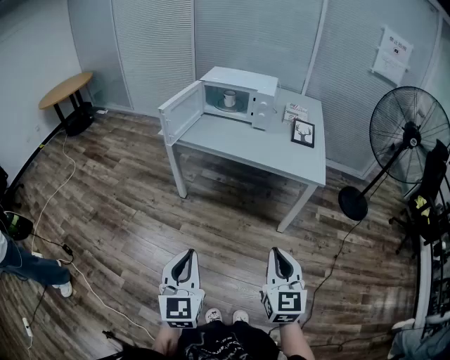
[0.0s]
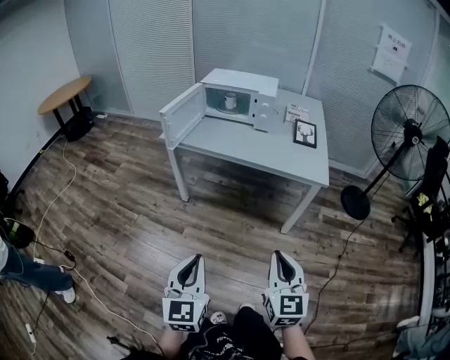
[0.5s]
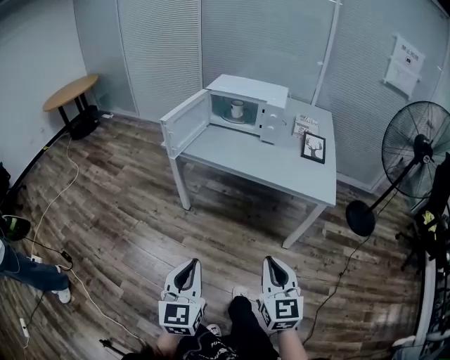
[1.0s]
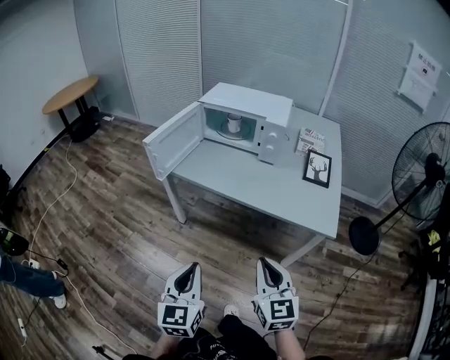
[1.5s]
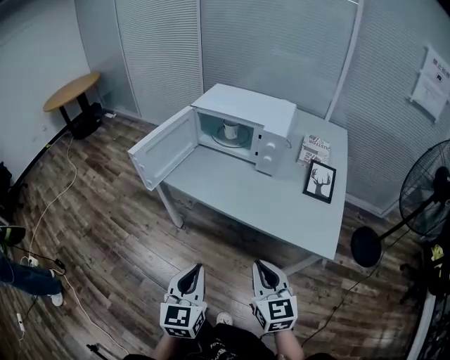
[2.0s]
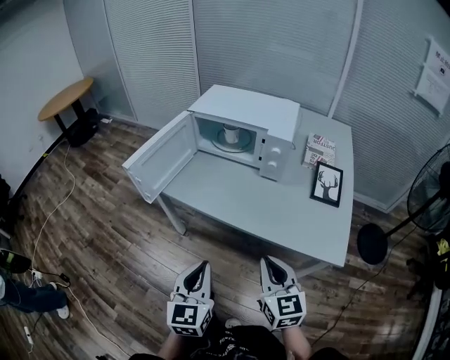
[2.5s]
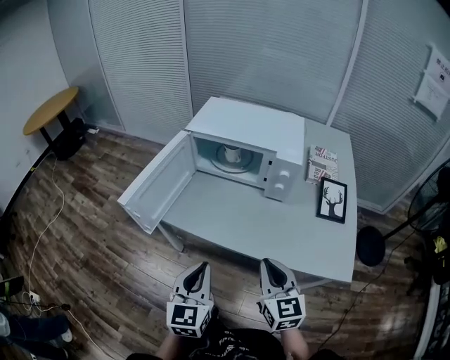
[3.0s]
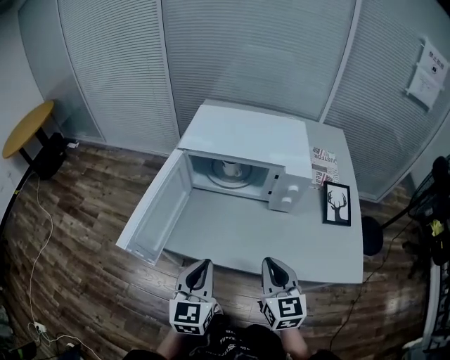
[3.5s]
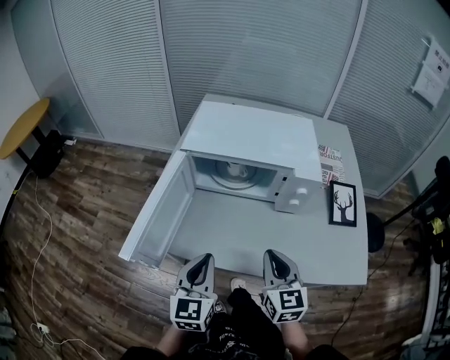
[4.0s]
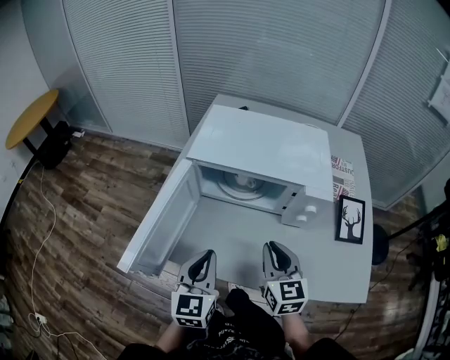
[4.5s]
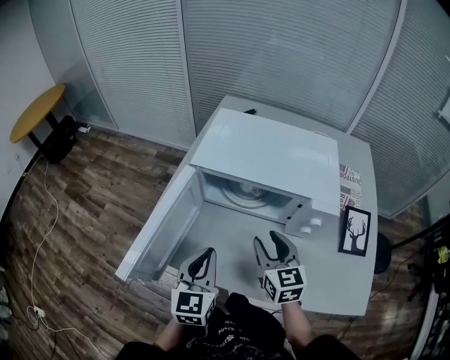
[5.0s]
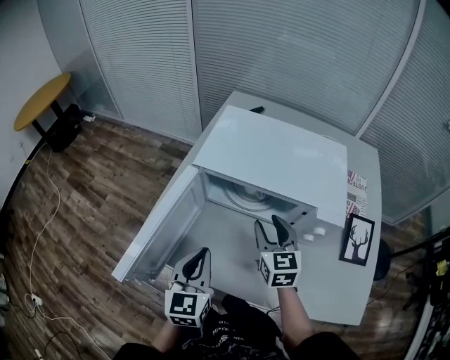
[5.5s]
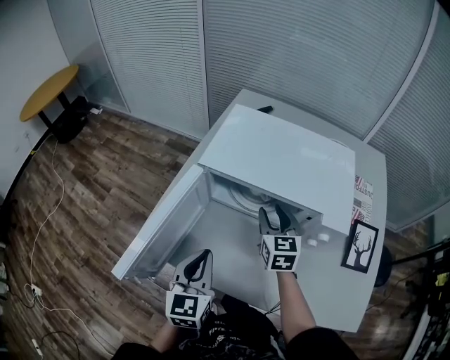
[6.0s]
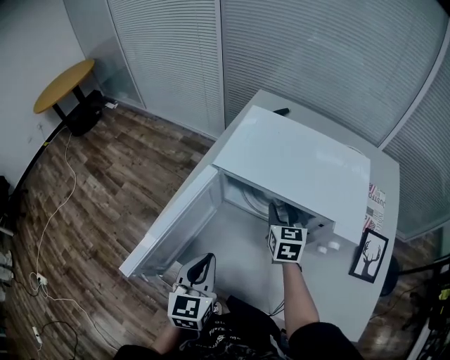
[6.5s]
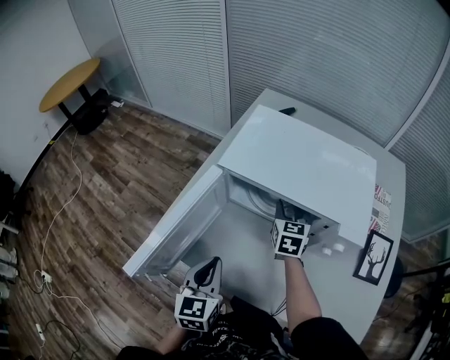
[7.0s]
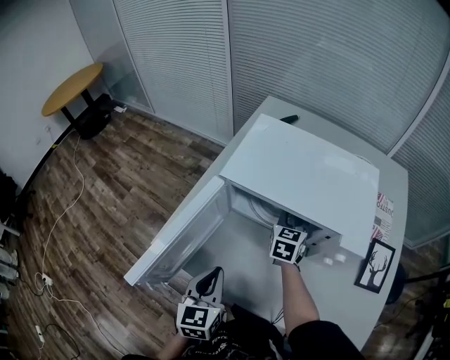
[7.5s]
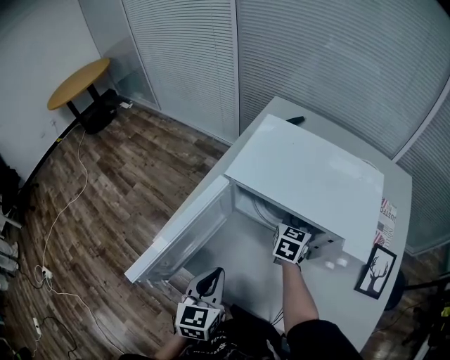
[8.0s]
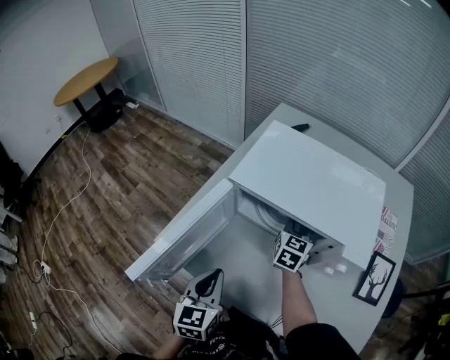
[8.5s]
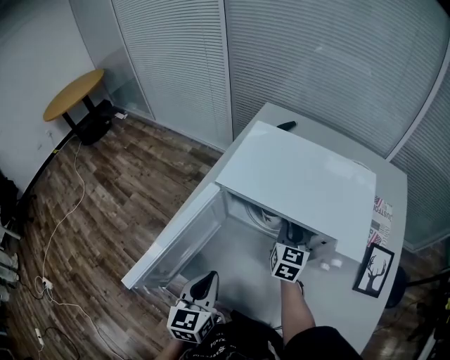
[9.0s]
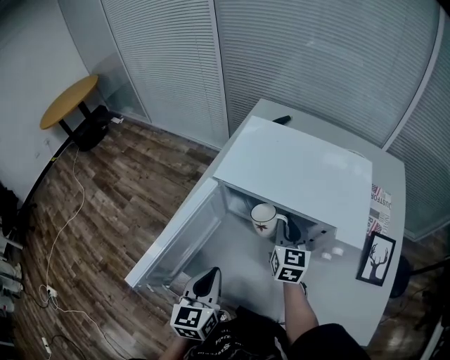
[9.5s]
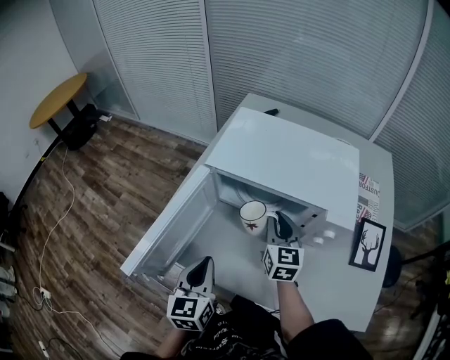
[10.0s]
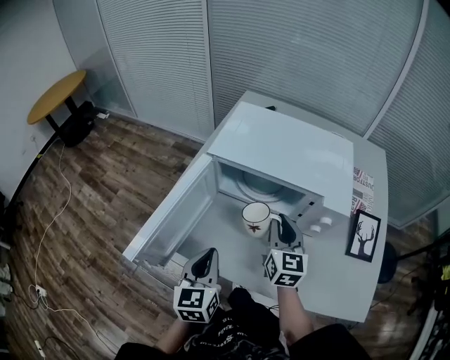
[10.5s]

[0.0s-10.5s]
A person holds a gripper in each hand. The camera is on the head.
0.0s to 2.0s: Both grippers move forward, approximately 30 cm.
2.0s to 4.0s: Both grippers move forward, approximately 30 cm.
4.0s to 6.5s: The left gripper moves forward, roughly 10 cm. The right gripper shifts about 30 cm forward, and opens up.
6.5s to 8.5s: The right gripper closes its fingers.
8.5s to 10.5s: The right gripper goes roughly 15 cm backward and upward.

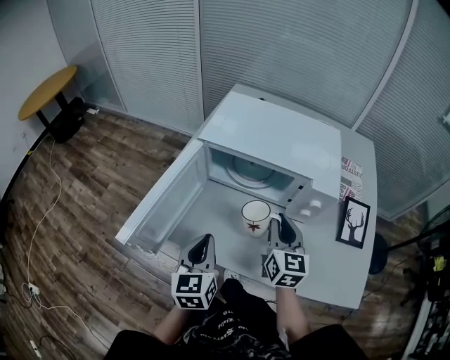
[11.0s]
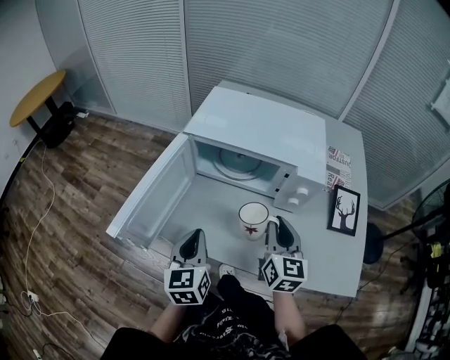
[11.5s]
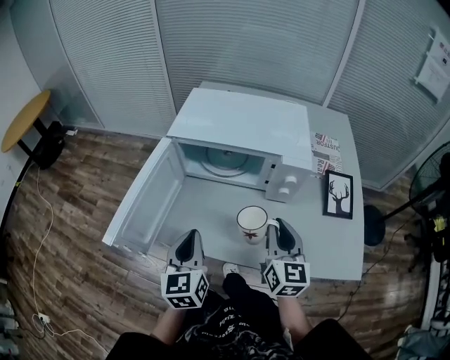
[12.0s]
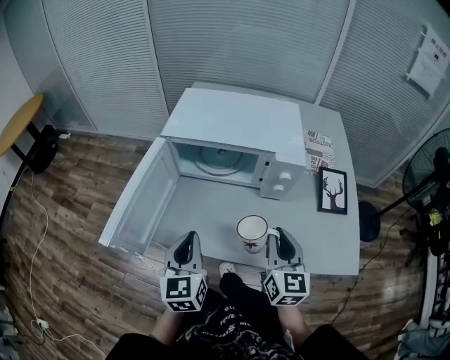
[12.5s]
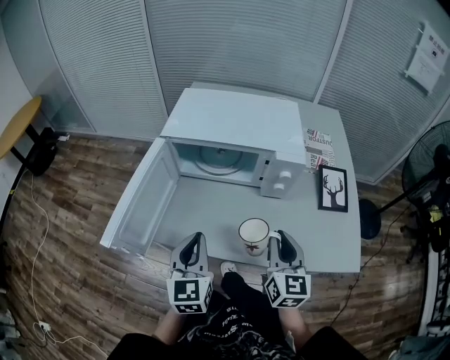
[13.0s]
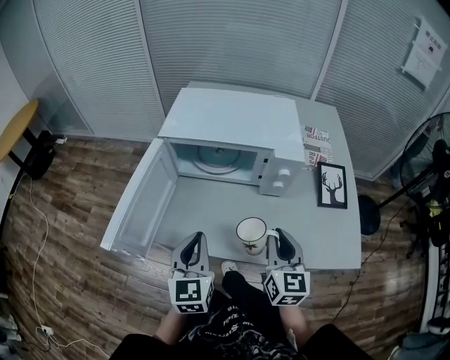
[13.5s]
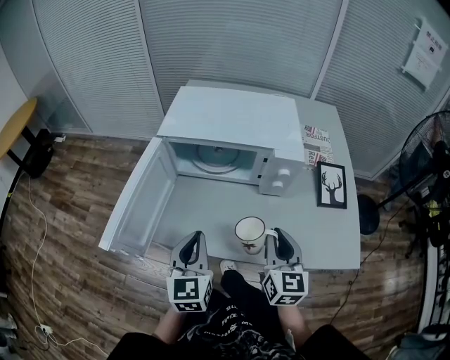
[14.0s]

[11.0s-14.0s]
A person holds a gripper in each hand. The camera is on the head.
11.0s to 12.5s: The right gripper heads backward and to the right, covering about 15 cm.
12.5s to 14.0s: The grippers make only small movements.

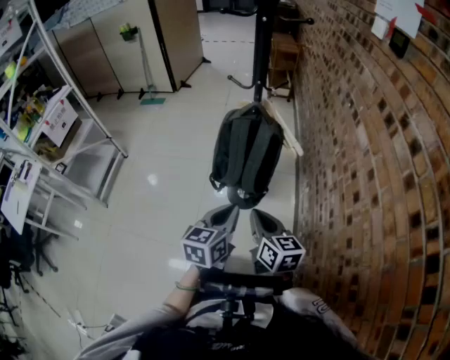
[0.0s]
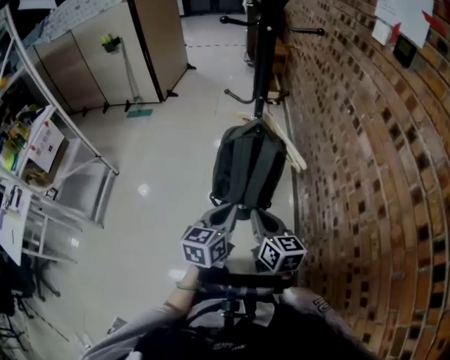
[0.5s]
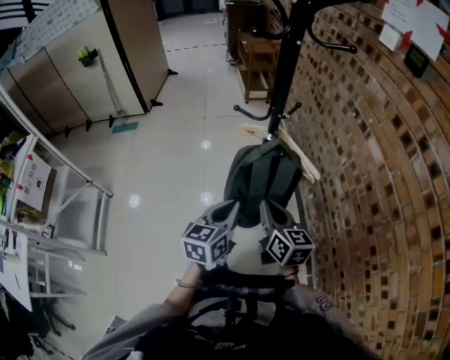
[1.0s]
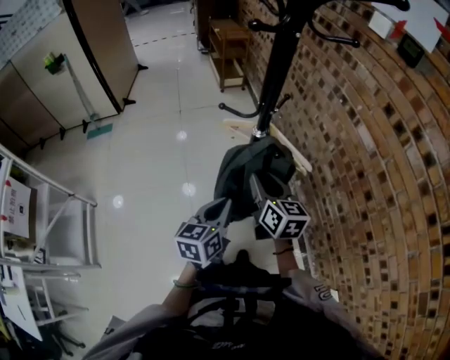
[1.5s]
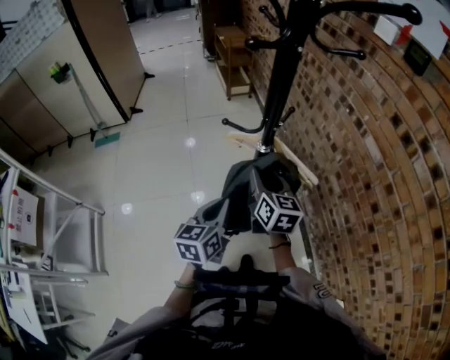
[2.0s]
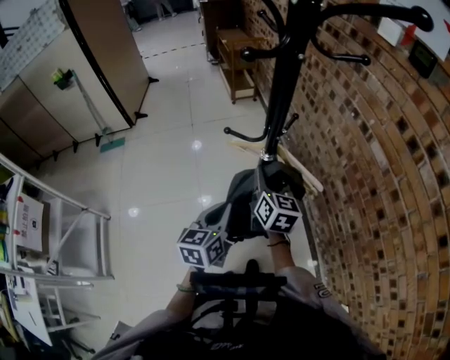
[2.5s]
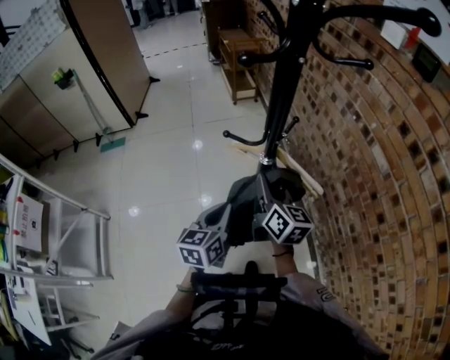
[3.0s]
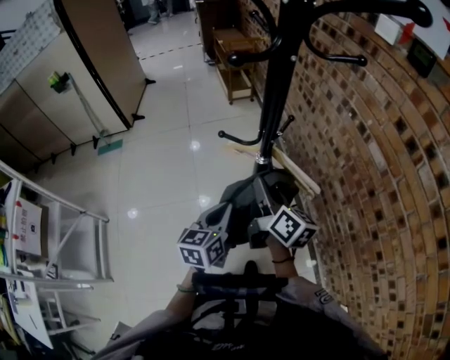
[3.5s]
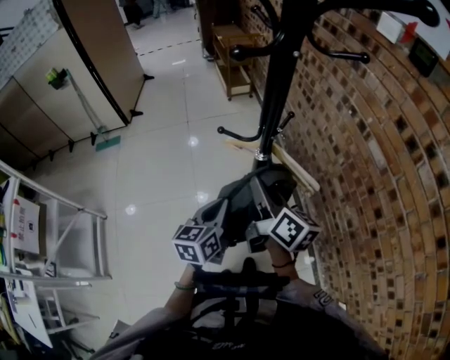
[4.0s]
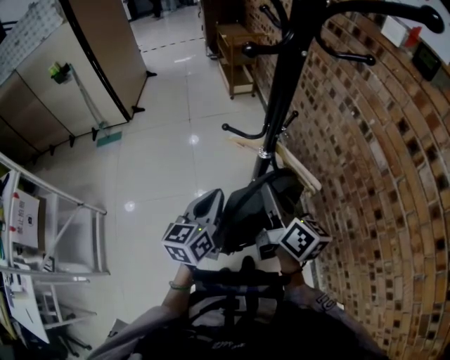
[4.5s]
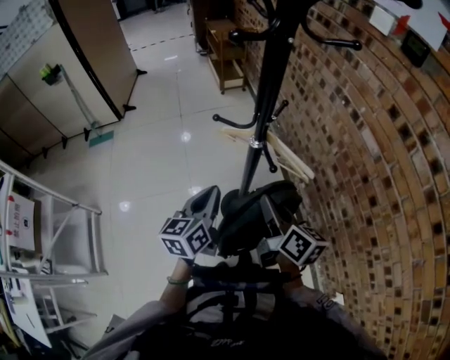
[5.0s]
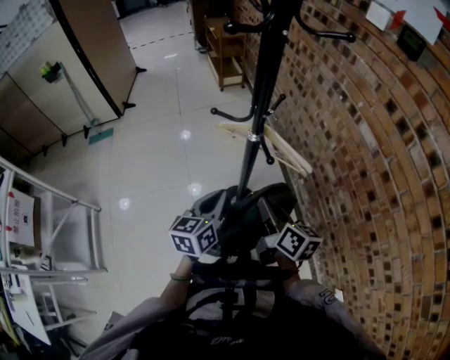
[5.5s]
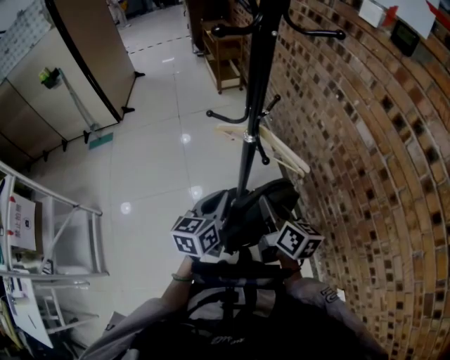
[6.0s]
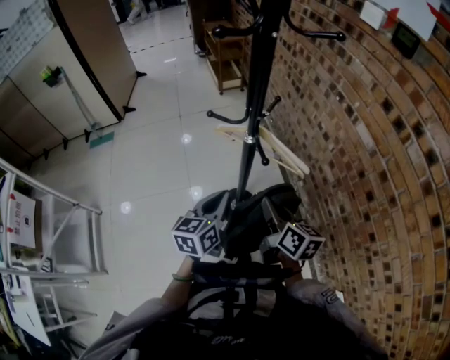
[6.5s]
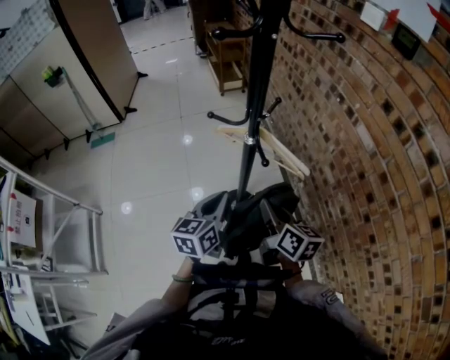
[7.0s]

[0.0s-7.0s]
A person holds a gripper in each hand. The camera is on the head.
0.0s to 2.0s: The left gripper travels forward and to the left by approximately 25 cm, while the right gripper shifts roughly 30 cm forward, swivels approximately 30 degrees, and opens its fingers.
2.0s to 3.5s: The right gripper turns by about 30 degrees, and closes its fingers.
3.5s to 5.0s: The right gripper goes some 10 cm backward.
5.0s to 7.0s: The left gripper moves approximately 5 cm, while the right gripper moves downward, about 5 cm.

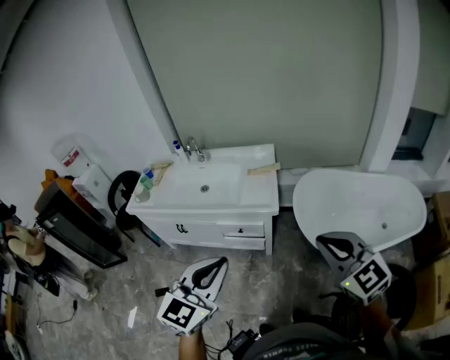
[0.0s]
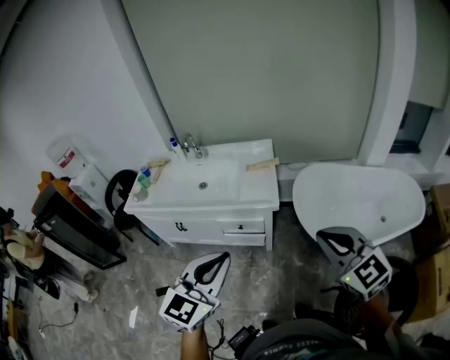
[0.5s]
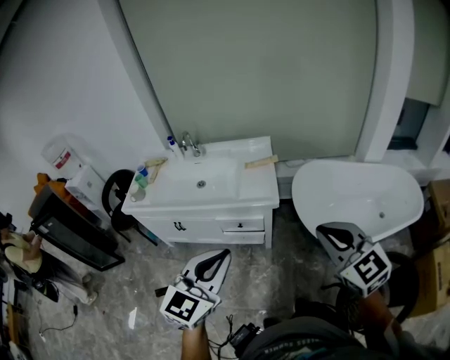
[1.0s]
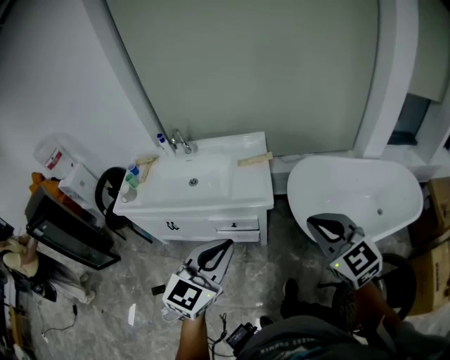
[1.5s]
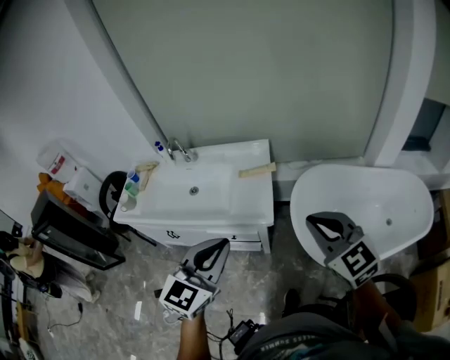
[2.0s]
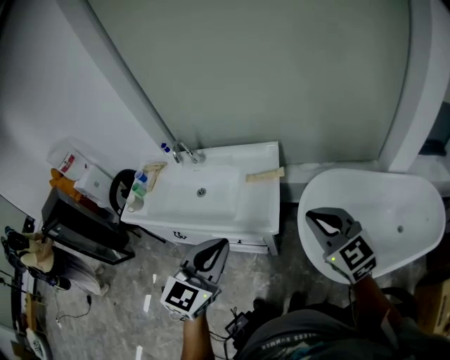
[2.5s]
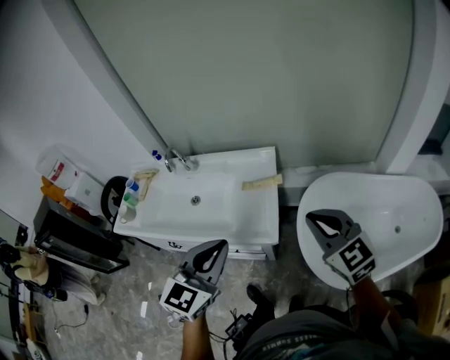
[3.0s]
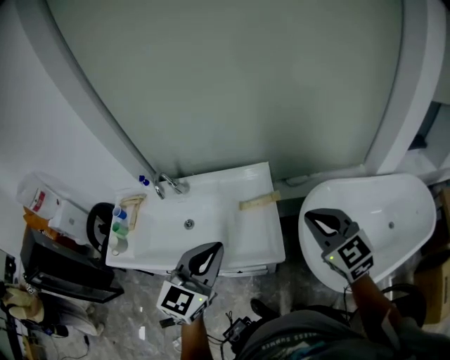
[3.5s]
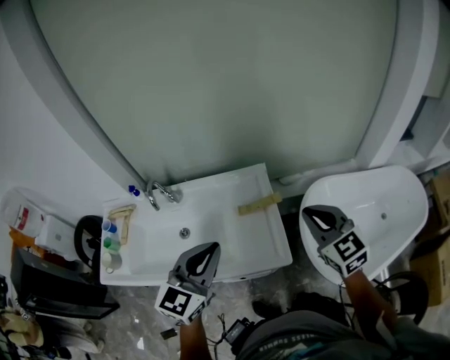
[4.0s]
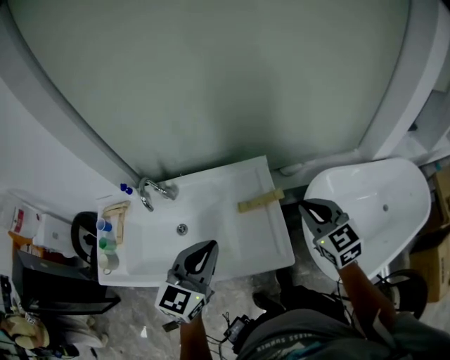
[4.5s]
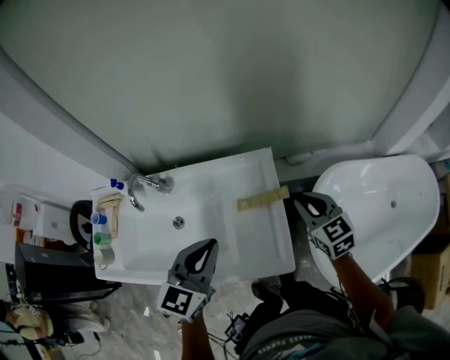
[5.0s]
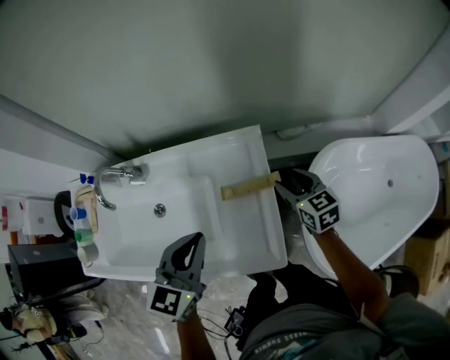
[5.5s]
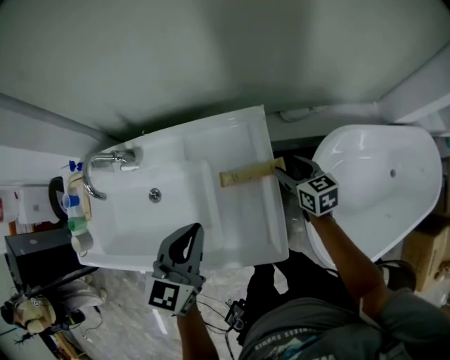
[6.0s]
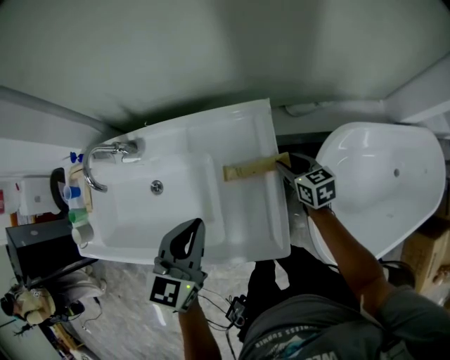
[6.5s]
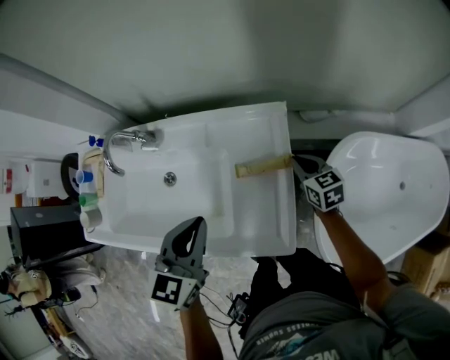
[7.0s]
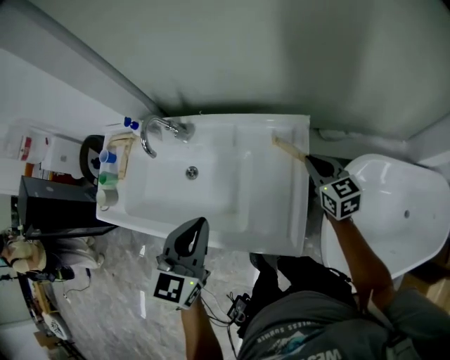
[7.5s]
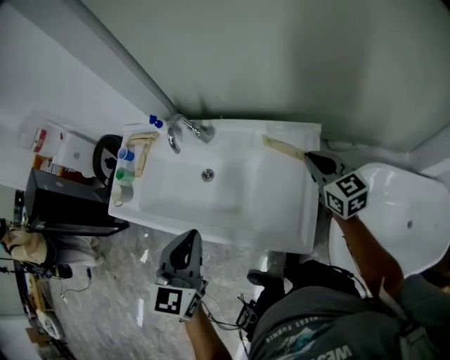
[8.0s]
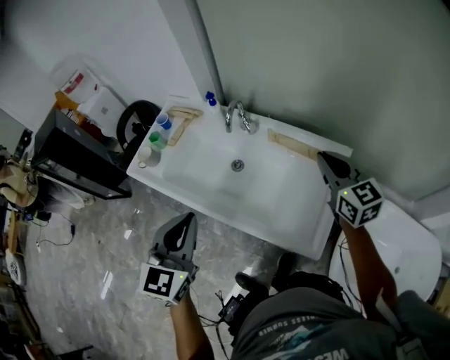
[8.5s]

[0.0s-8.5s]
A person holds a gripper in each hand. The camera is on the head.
0.0s to 2.0s: Both grippers travel together forward, some 20 cm.
2.0s to 4.0s: The left gripper goes about 25 cm forward and to the left; the right gripper is displaced forward by roughly 25 cm.
4.0s to 6.5s: The left gripper is displaced downward and forward by some 25 cm, and rotates roughly 20 degrees. Meanwhile the right gripper goes approximately 40 cm downward and forward, swivels approximately 40 degrees, and opens its fingers.
6.5s to 8.5s: The left gripper shifts about 35 cm to the left, upward and backward, and swivels about 30 degrees, while the right gripper travels upward and to the left by approximately 40 cm, changes its angle by roughly 40 degrees, and closes.
